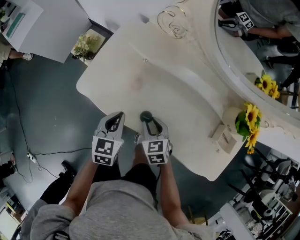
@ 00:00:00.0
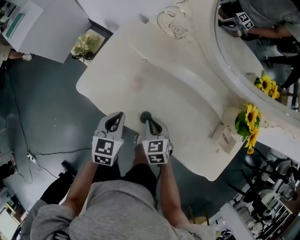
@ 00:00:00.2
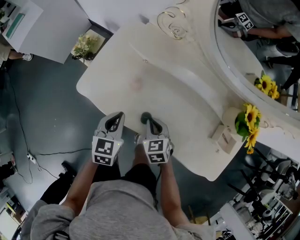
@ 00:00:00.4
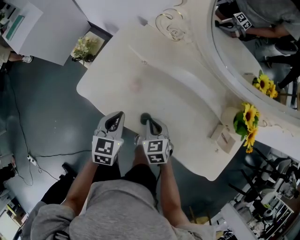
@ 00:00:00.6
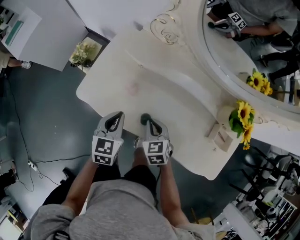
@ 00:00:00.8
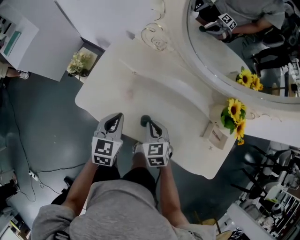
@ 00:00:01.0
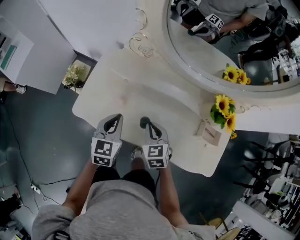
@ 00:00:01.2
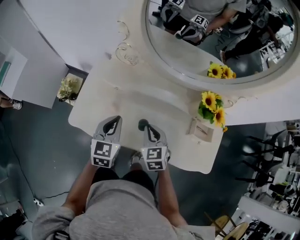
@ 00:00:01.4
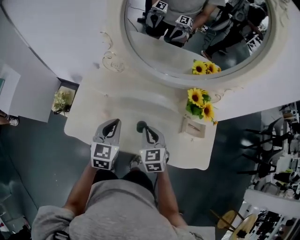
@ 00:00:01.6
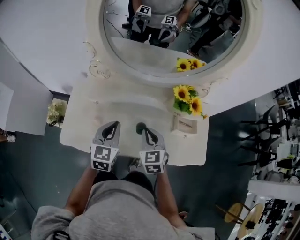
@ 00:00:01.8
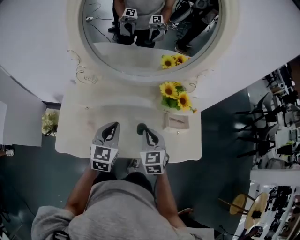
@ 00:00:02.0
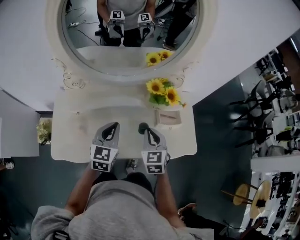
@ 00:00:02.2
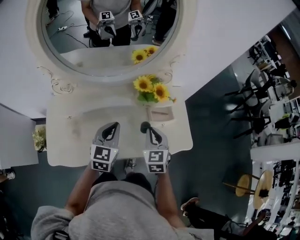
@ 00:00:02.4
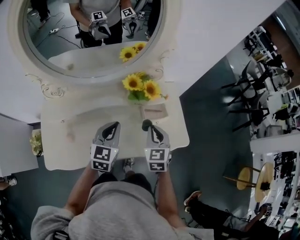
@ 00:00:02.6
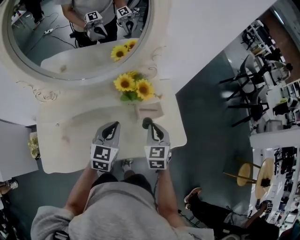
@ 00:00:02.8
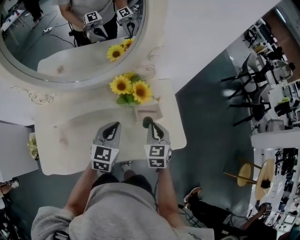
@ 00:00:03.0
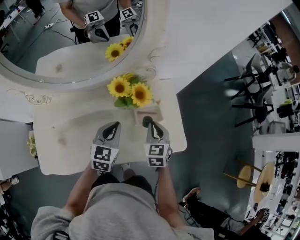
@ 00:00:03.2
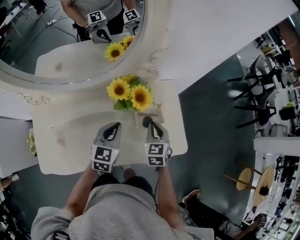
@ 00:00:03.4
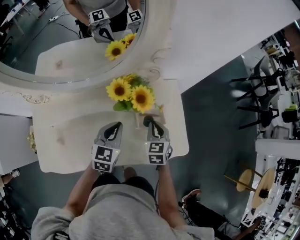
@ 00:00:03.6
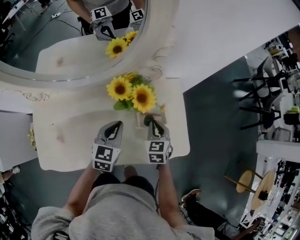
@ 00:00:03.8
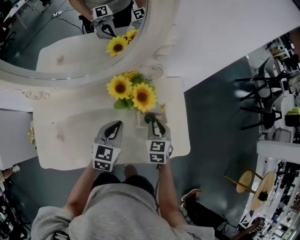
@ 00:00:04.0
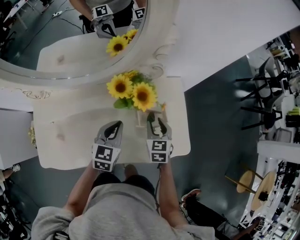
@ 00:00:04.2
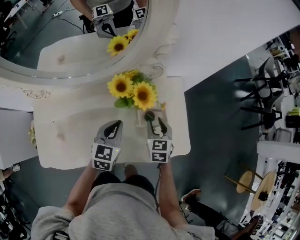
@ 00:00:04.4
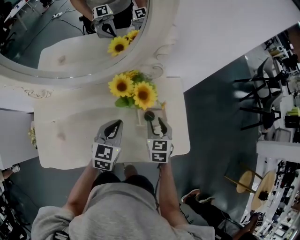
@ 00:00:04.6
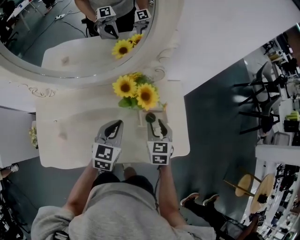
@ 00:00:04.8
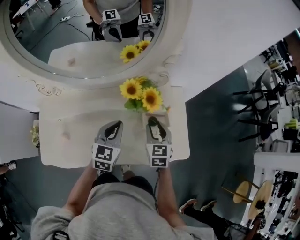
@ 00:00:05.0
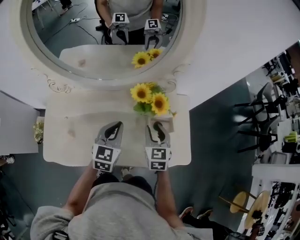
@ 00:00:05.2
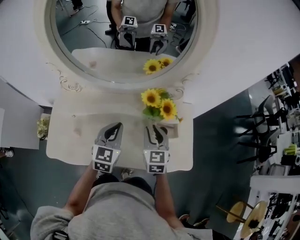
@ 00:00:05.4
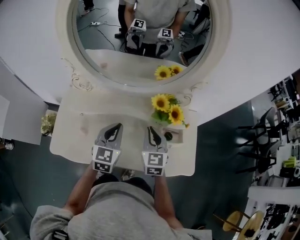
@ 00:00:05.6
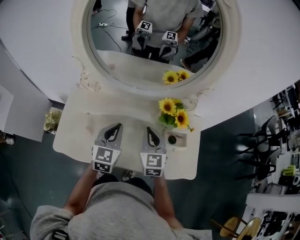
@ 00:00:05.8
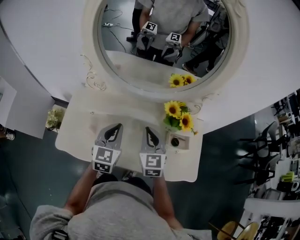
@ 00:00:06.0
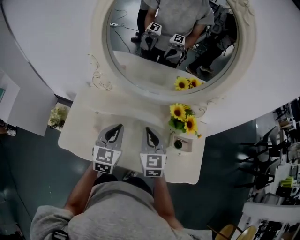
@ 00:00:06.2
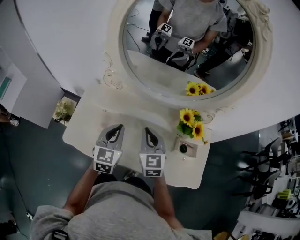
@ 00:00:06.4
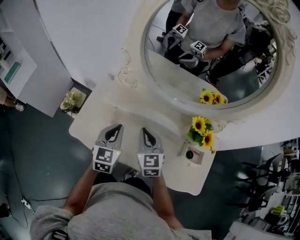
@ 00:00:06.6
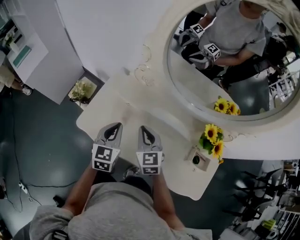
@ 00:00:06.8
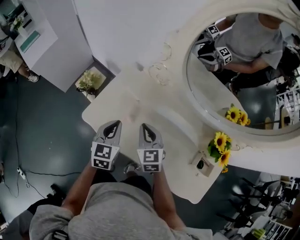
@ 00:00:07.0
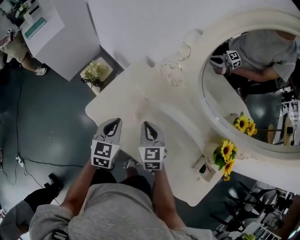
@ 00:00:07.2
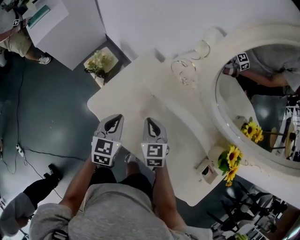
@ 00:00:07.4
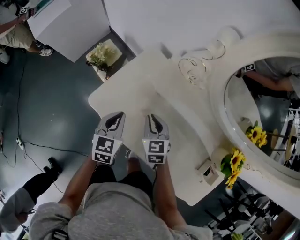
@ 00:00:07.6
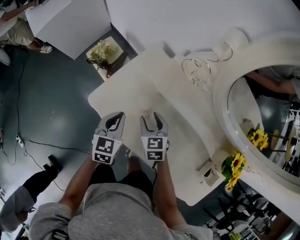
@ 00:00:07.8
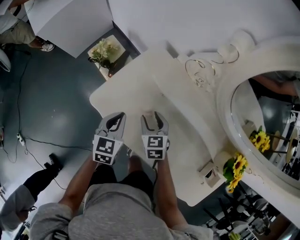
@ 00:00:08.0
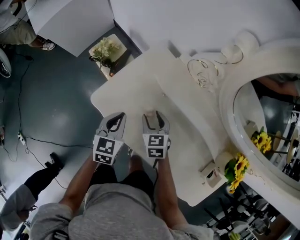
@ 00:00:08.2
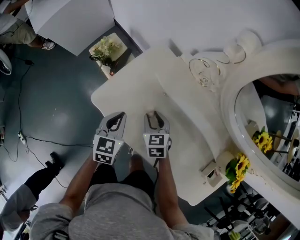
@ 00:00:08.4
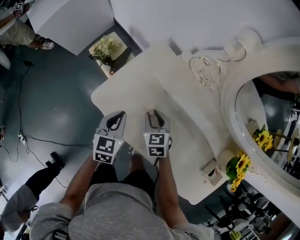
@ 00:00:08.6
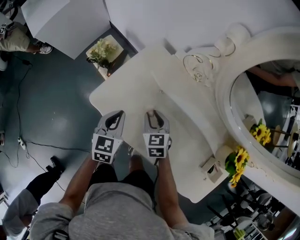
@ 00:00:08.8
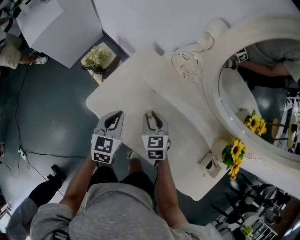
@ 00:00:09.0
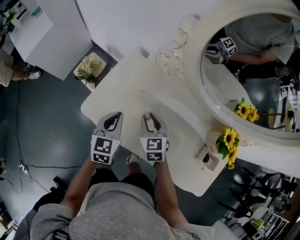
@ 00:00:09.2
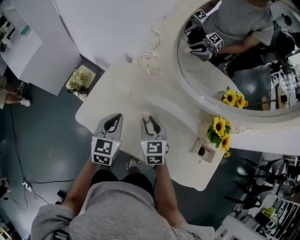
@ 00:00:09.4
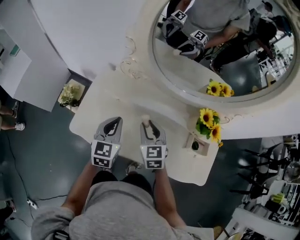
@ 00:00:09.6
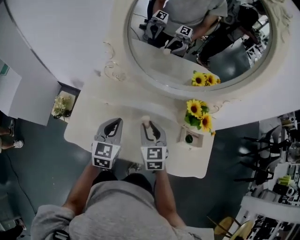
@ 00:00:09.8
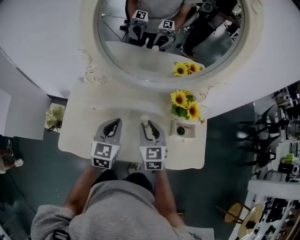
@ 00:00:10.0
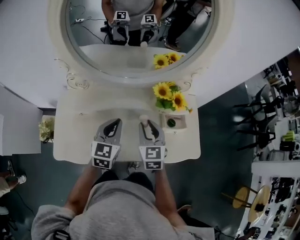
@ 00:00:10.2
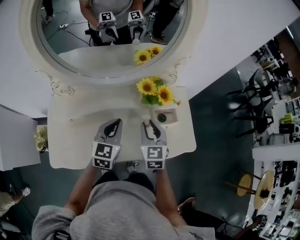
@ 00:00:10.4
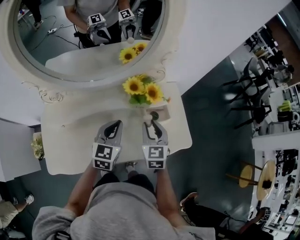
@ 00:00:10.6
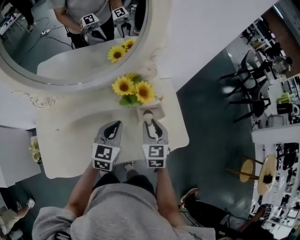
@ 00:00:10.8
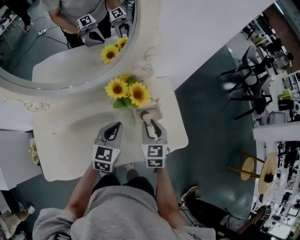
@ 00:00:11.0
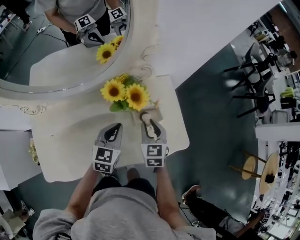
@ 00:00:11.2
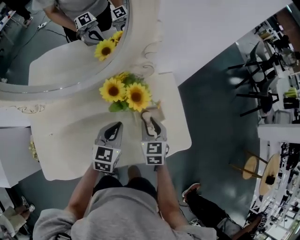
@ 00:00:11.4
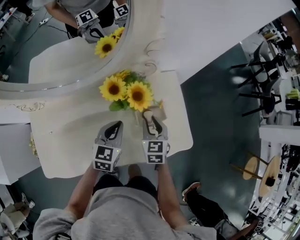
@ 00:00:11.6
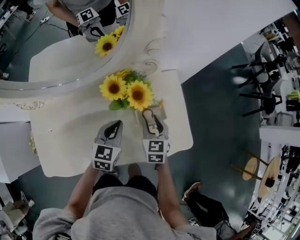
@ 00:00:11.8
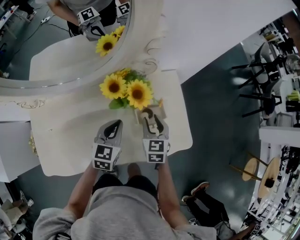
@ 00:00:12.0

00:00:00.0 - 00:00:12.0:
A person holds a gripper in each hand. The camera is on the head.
00:00:00.0 - 00:00:01.6: The left gripper heads upward, to the right and forward, covering some 20 cm, and swivels about 20 degrees, while the right gripper heads upward and to the right, covering some 20 cm, rotates approximately 30 degrees, and closes up.
00:00:01.6 - 00:00:03.0: The left gripper ends up some 30 cm from where it was, and swivels approximately 30 degrees; the right gripper ends up roughly 30 cm from where it was, and rotates approximately 30 degrees.
00:00:03.0 - 00:00:04.4: The right gripper travels downward by some 5 cm, and opens. The left gripper moves some 5 cm.
00:00:04.4 - 00:00:06.0: Both grippers travel together to the left and upward, about 25 cm. The right gripper changes its angle by approximately 30 degrees, and closes; the left gripper changes its angle by about 20 degrees.
00:00:06.0 - 00:00:07.6: The right gripper shifts by approximately 35 cm, and rotates some 40 degrees. The left gripper ends up roughly 30 cm from where it was, and turns by roughly 40 degrees.
00:00:07.6 - 00:00:09.0: The right gripper opens and closes again.
00:00:09.0 - 00:00:10.4: The left gripper moves approximately 35 cm, and changes its angle by approximately 50 degrees; the right gripper ends up about 40 cm from where it was, and turns by approximately 50 degrees.
00:00:10.4 - 00:00:12.0: Both grippers move to the right, downward and forward, some 15 cm.

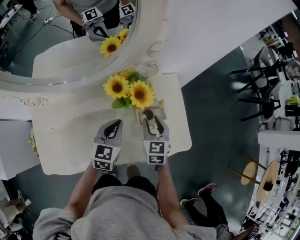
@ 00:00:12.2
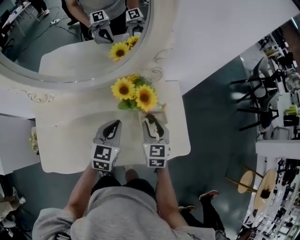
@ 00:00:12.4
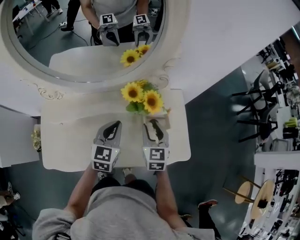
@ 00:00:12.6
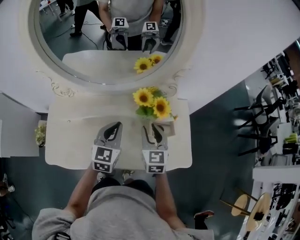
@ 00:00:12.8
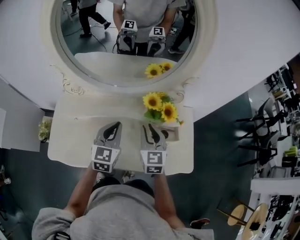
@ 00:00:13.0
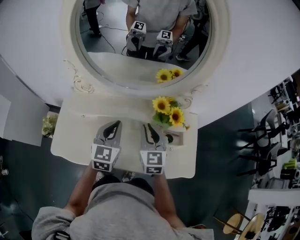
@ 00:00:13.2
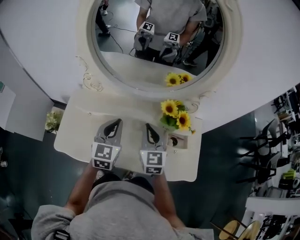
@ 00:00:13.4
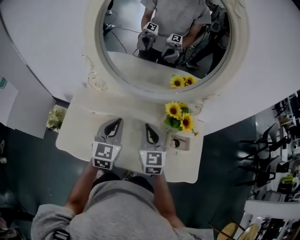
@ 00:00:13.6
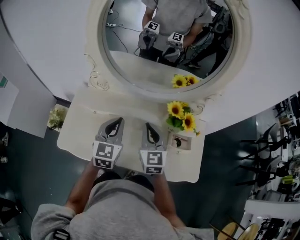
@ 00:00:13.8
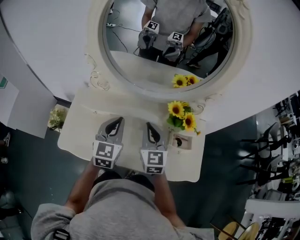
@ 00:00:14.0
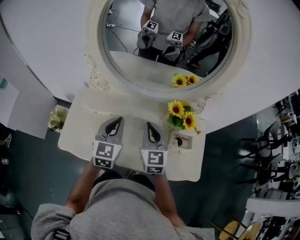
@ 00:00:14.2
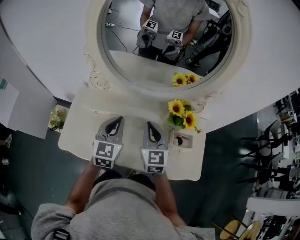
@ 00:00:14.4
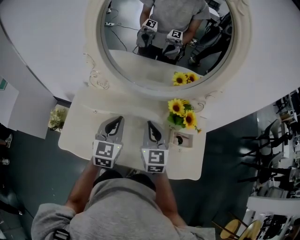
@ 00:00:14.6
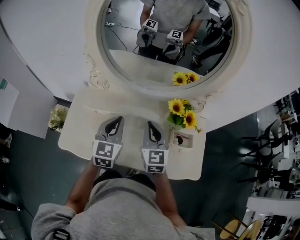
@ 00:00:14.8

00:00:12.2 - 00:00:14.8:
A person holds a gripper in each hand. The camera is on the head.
00:00:12.2 - 00:00:13.4: The left gripper shifts by about 25 cm, and changes its angle by approximately 30 degrees, while the right gripper moves some 25 cm, rotates roughly 30 degrees, and closes.
00:00:13.4 - 00:00:14.8: The grippers make only small movements.

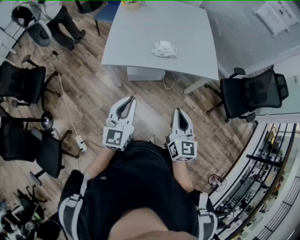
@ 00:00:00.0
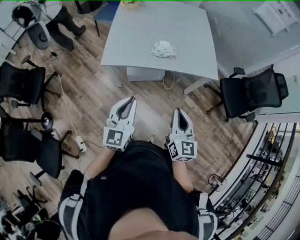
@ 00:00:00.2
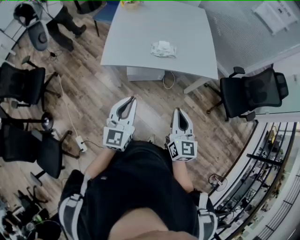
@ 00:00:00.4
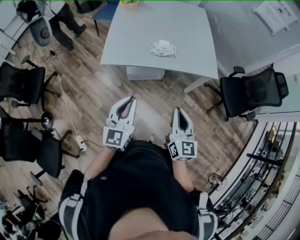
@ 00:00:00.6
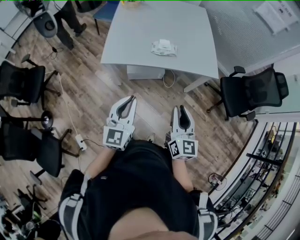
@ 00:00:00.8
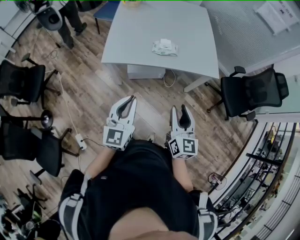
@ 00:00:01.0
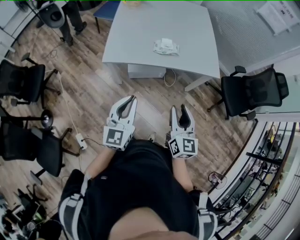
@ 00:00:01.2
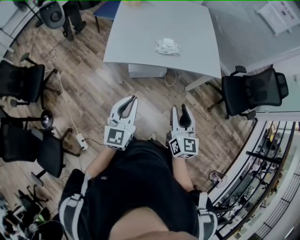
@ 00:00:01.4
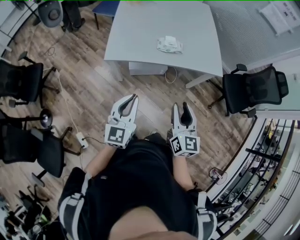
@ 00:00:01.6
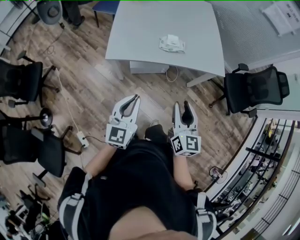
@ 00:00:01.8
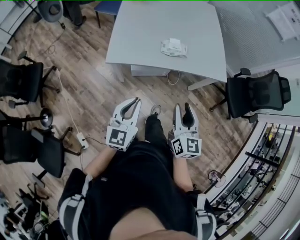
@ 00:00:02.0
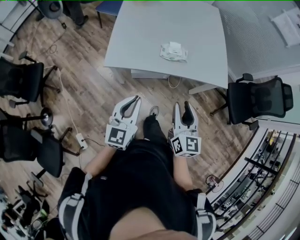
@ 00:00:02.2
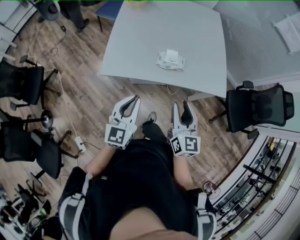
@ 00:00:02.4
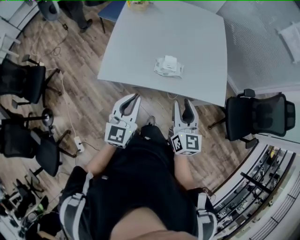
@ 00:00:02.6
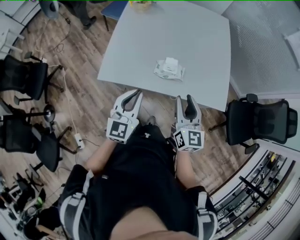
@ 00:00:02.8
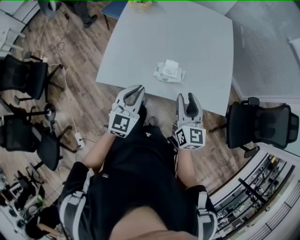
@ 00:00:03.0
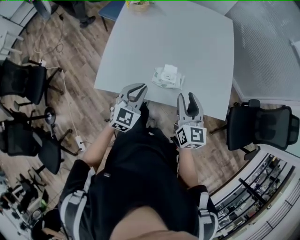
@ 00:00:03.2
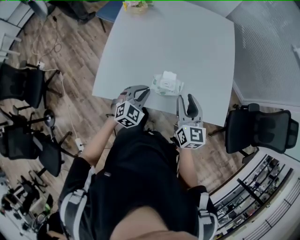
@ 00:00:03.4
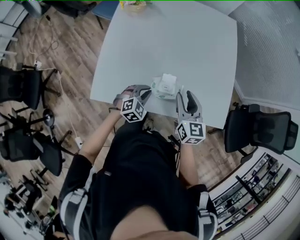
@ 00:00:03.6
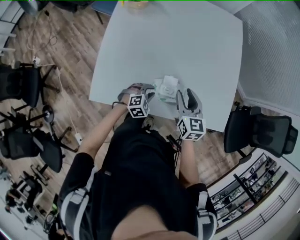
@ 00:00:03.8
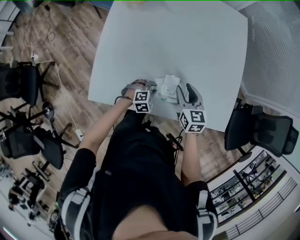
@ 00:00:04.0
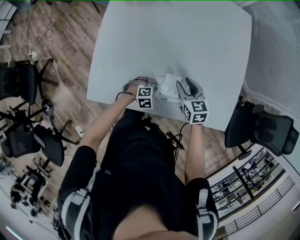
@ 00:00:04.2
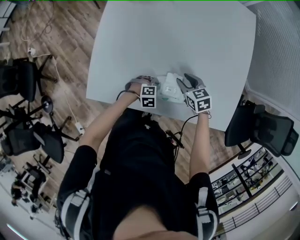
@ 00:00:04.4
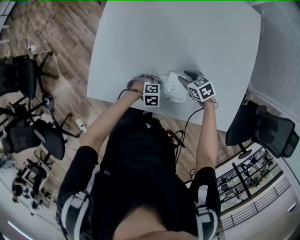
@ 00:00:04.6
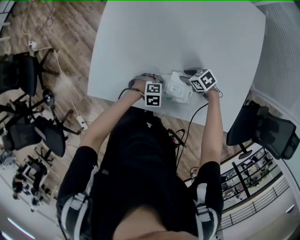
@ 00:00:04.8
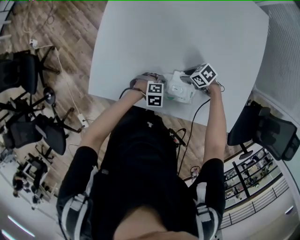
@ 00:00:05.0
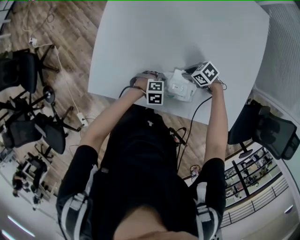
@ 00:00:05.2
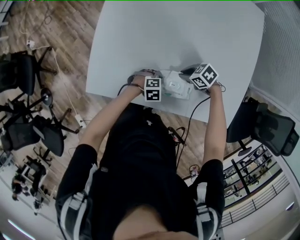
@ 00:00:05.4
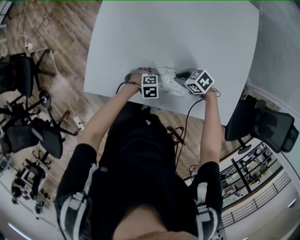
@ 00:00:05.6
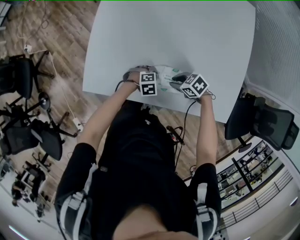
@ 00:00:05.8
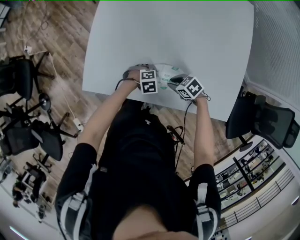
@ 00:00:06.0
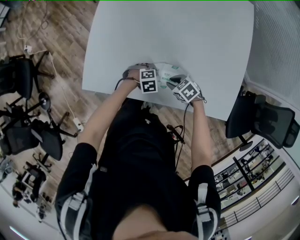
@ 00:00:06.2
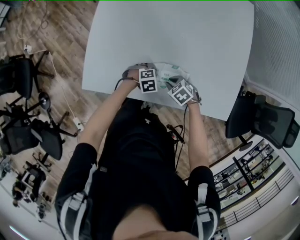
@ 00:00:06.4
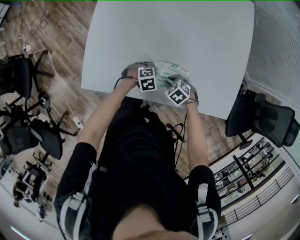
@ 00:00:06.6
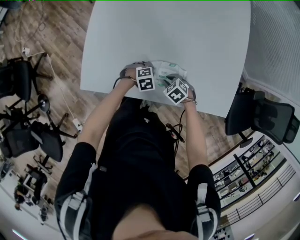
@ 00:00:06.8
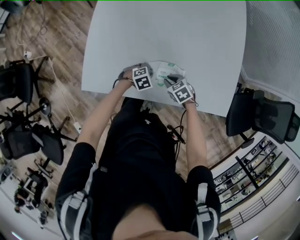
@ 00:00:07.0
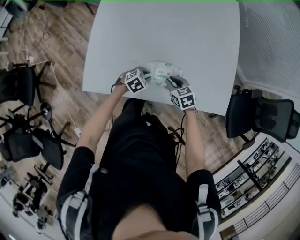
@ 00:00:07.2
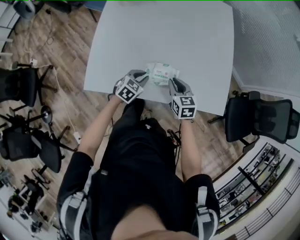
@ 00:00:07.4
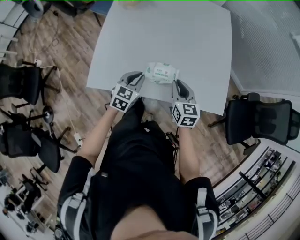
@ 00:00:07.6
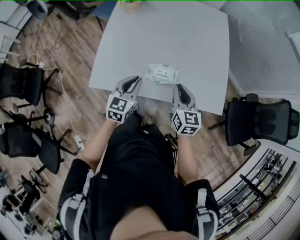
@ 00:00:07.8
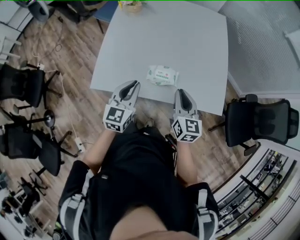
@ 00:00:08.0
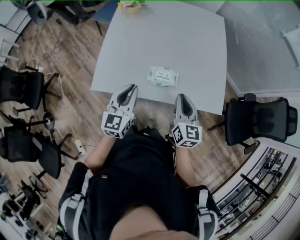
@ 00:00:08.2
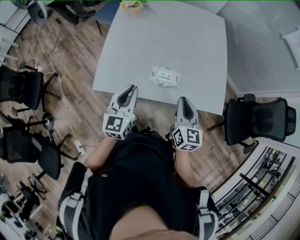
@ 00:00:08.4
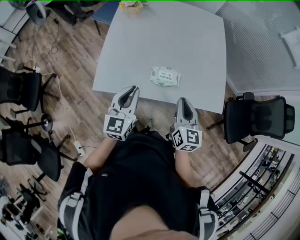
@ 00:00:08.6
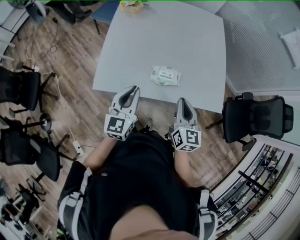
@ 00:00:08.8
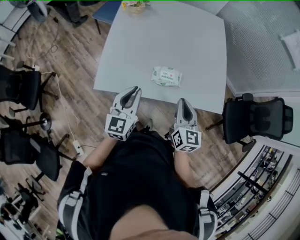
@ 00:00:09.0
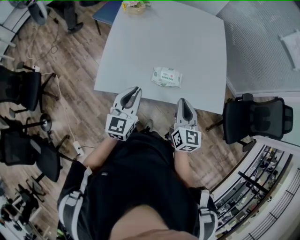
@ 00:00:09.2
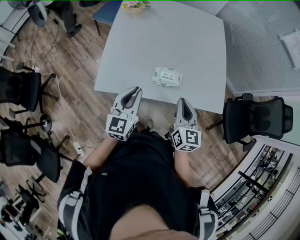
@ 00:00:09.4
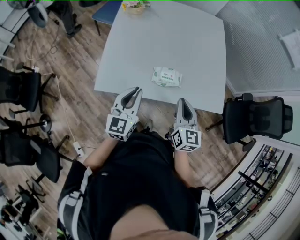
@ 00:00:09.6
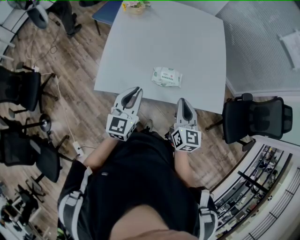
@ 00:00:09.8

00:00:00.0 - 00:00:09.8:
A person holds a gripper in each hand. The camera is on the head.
00:00:00.0 - 00:00:01.4: The right gripper opens its fingers.
00:00:01.4 - 00:00:02.8: Both grippers travel together forward, roughly 30 cm.
00:00:02.8 - 00:00:04.2: The right gripper goes about 40 cm forward and downward, and points its fingers approximately 30 degrees further downward. Meanwhile the left gripper goes approximately 50 cm downward and forward, and points its fingers approximately 50 degrees further downward.
00:00:04.2 - 00:00:05.6: The right gripper travels downward by about 10 cm, turns by roughly 50 degrees, and closes its fingers.
00:00:05.6 - 00:00:07.0: The right gripper changes place by approximately 5 cm, and swivels approximately 20 degrees.
00:00:07.0 - 00:00:08.4: Both grippers move upward, some 35 cm. The right gripper angles its fingers upward, by approximately 50 degrees, while the left gripper tilts its fingers approximately 60 degrees upward.
00:00:08.4 - 00:00:09.8: The grippers stay close to where they were, moving slightly.
